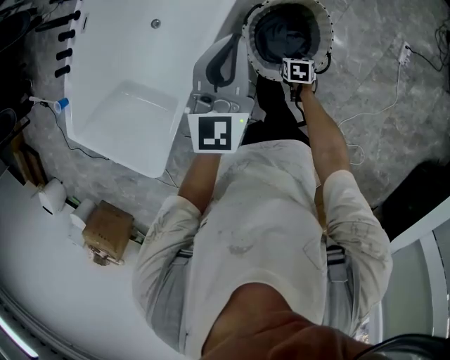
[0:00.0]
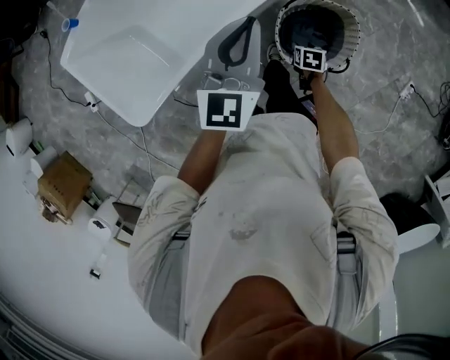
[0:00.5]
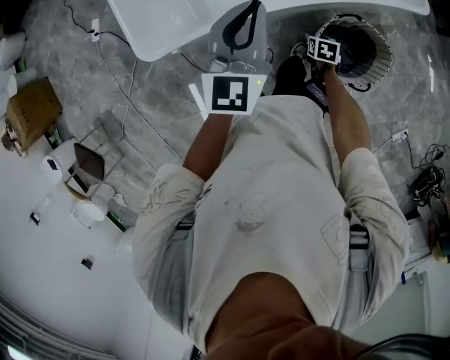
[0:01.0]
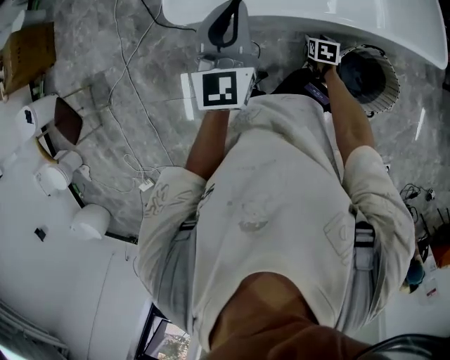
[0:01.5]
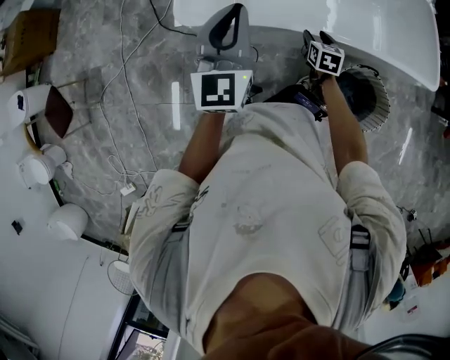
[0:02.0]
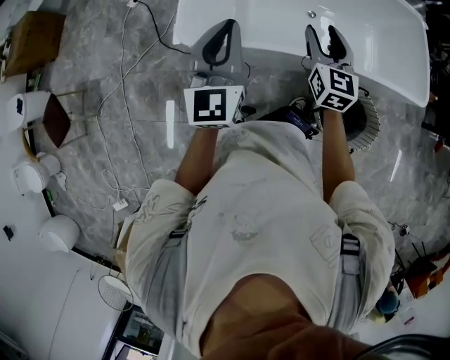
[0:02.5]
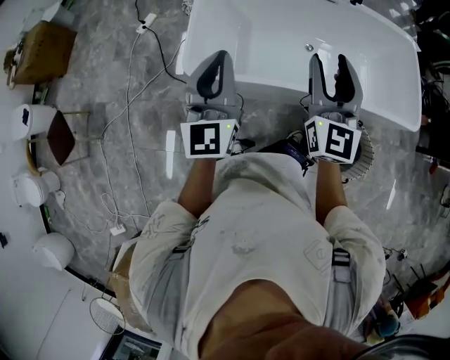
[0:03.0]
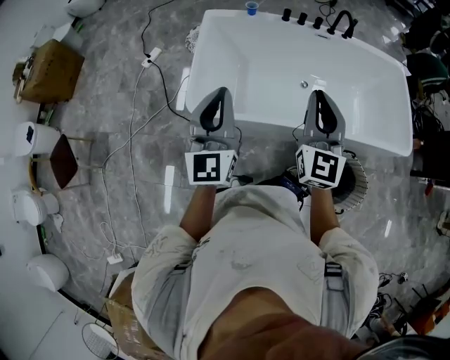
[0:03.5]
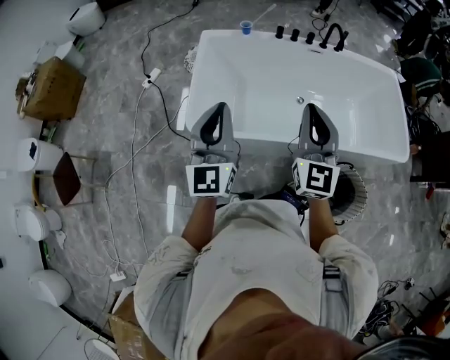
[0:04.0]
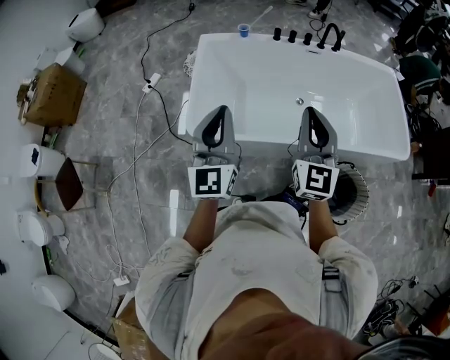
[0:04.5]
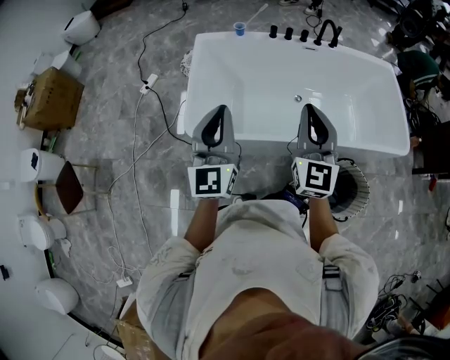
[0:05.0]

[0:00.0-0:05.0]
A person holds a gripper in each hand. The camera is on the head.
0:00.0 to 0:02.5: Both grippers are carried approximately 50 cm. The right gripper angles its fingers upward, by about 60 degrees. The left gripper turns by some 70 degrees.
0:02.5 to 0:05.0: The left gripper shifts approximately 5 cm upward, while the right gripper heads upward, covering approximately 15 cm, and closes.

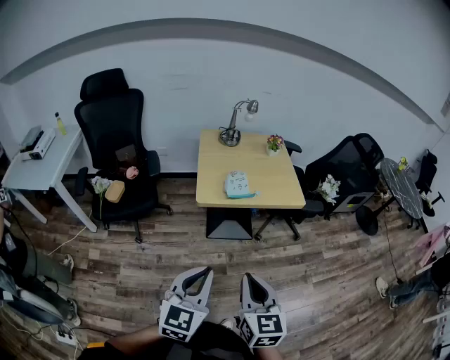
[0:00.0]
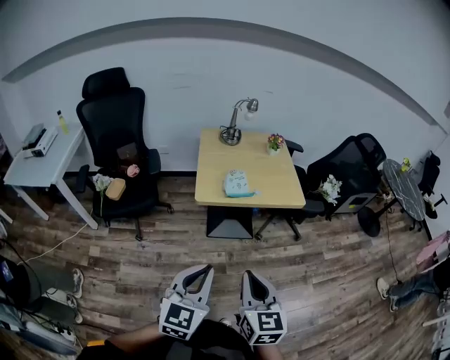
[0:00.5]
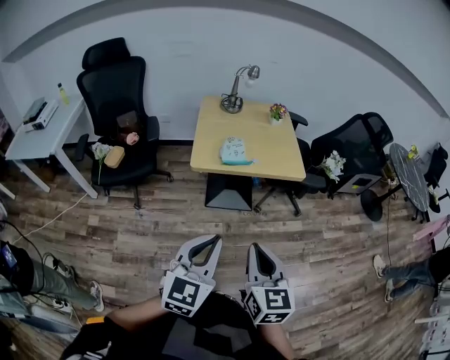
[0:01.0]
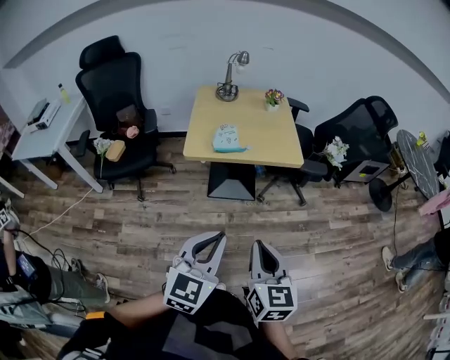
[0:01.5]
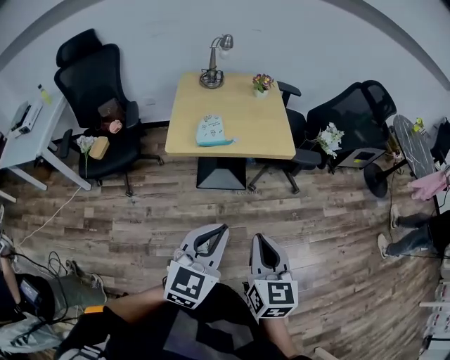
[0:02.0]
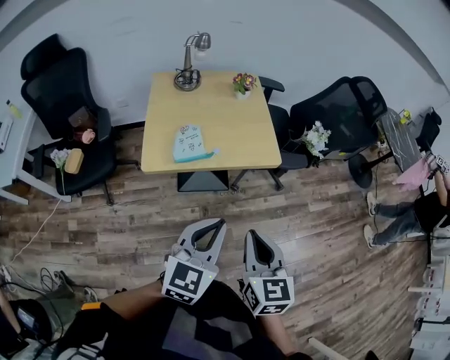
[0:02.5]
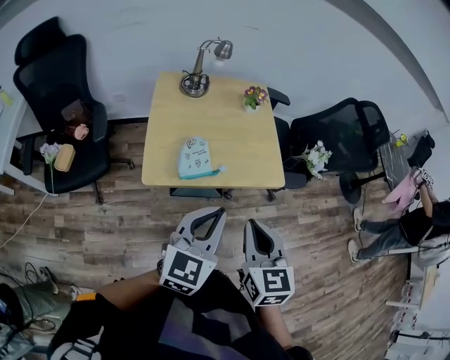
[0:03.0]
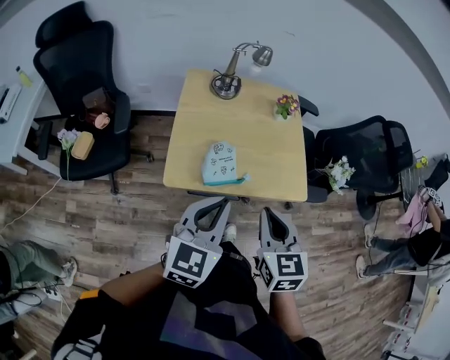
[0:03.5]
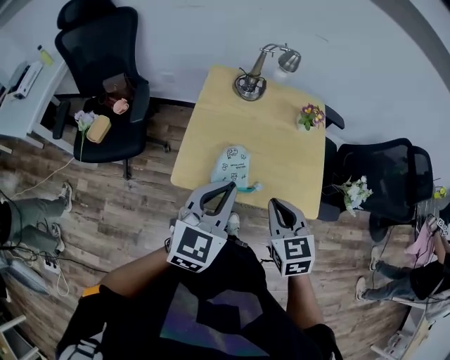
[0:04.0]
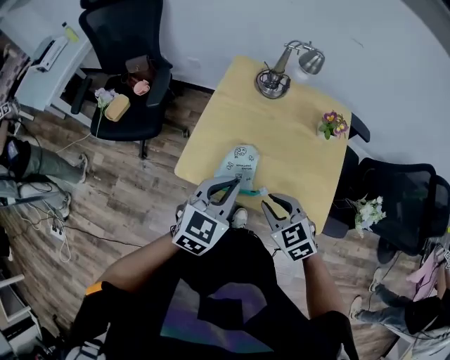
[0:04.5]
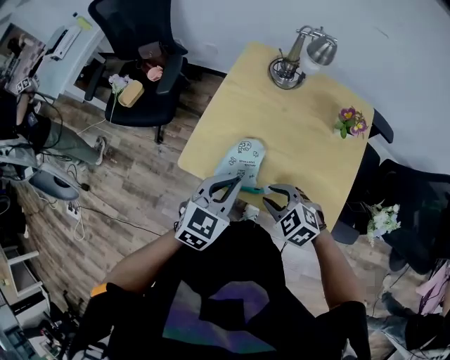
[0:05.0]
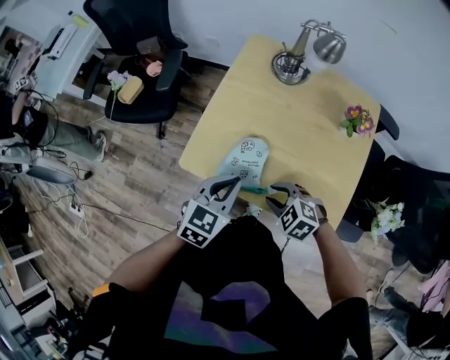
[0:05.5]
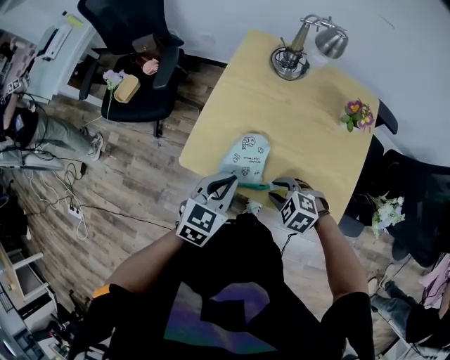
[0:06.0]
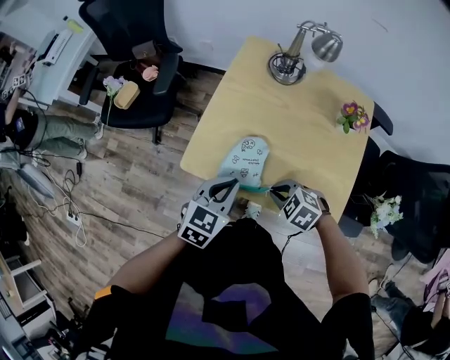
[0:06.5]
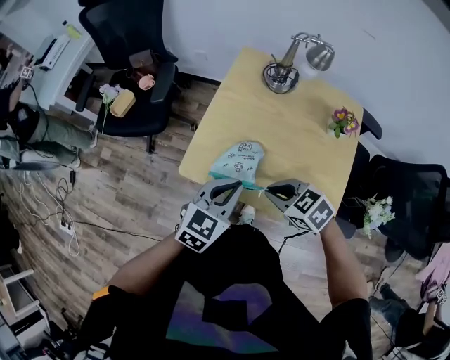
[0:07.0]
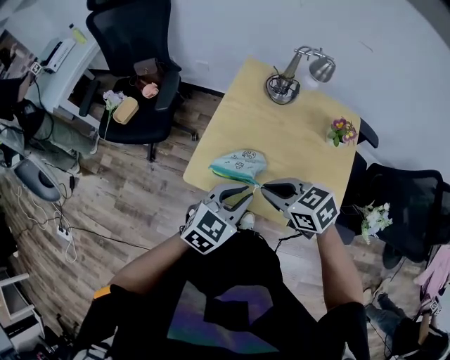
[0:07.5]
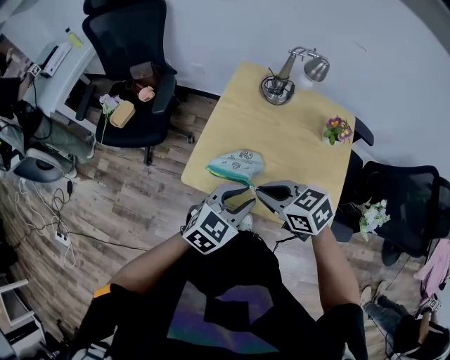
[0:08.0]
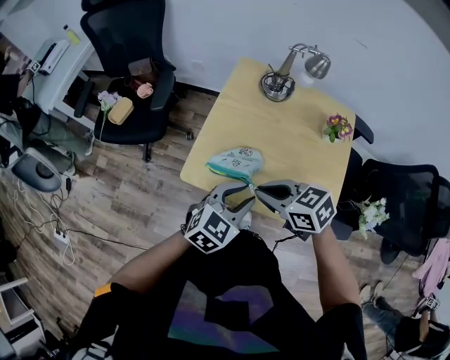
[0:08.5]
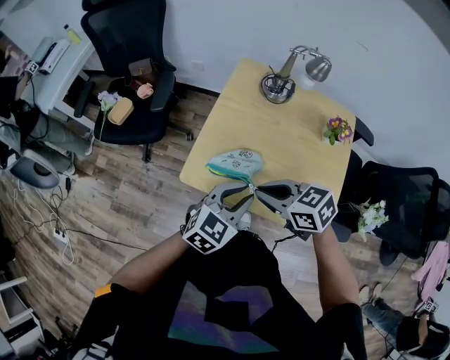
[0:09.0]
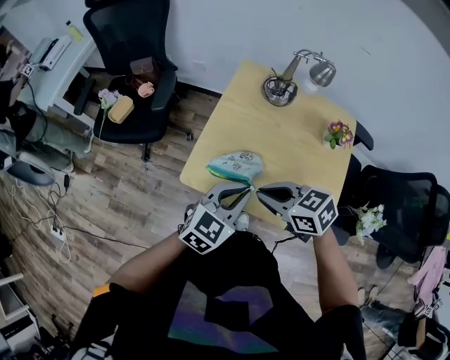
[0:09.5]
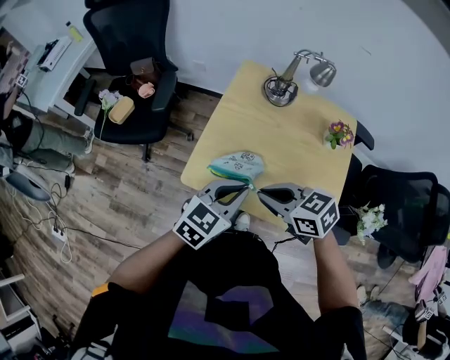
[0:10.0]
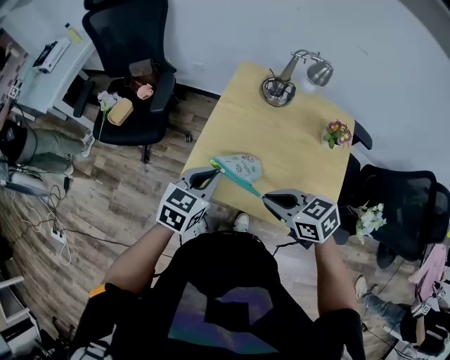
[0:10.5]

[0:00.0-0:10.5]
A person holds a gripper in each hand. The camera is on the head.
0:00.0 to 0:02.0: The two grippers go some 20 cm to the right.
0:02.0 to 0:04.0: Both grippers move forward, approximately 35 cm. The right gripper turns by roughly 30 degrees.
0:04.0 to 0:06.5: The two grippers go about 15 cm downward. The right gripper changes its angle by some 60 degrees, and opens, then closes again, while the left gripper swivels some 20 degrees.
0:06.5 to 0:08.5: The right gripper travels upward by approximately 15 cm, and turns by some 40 degrees, while the left gripper changes place by approximately 5 cm, and opens.
0:08.5 to 0:10.5: The left gripper heads forward and to the left, covering some 10 cm, and closes.

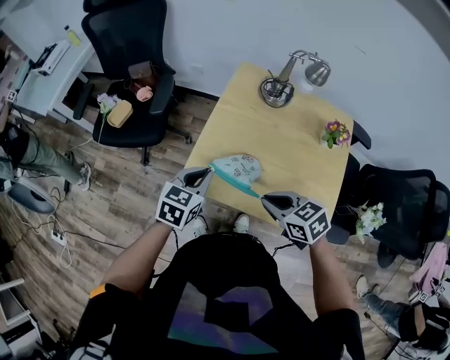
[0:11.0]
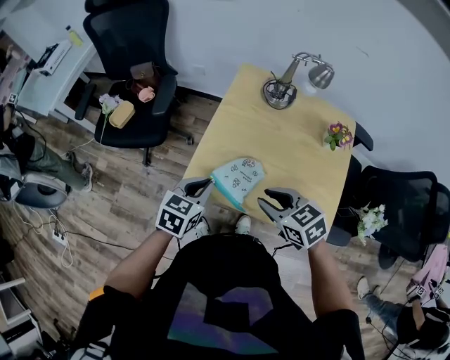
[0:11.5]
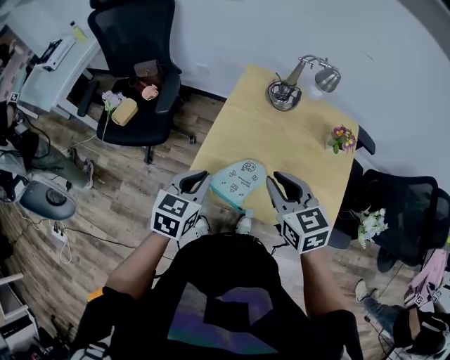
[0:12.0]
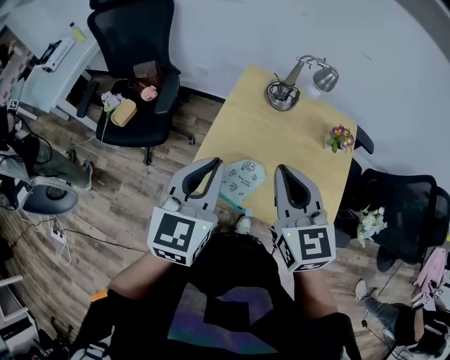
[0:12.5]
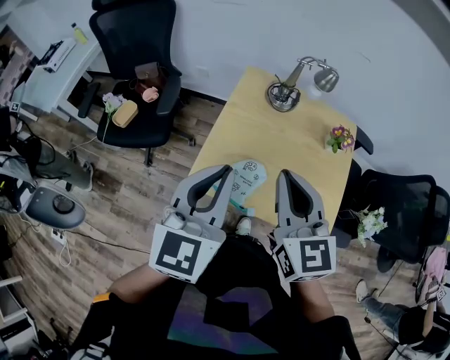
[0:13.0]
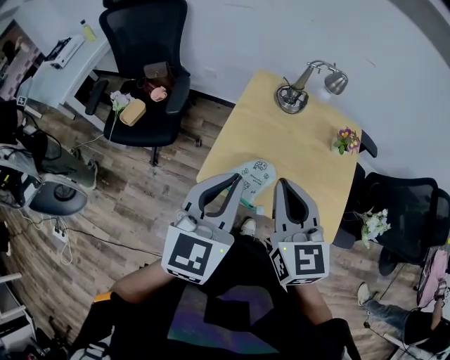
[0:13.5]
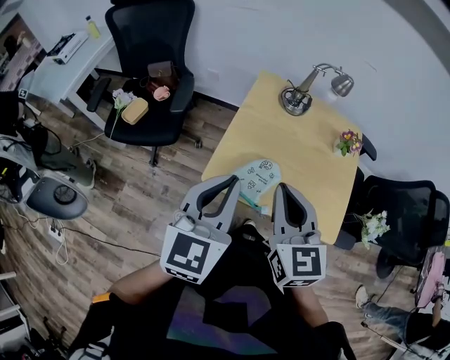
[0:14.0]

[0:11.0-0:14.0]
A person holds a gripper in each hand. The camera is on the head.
0:11.0 to 0:12.5: Both grippers move upward, approximately 20 cm. The left gripper turns by some 20 degrees; the right gripper turns by some 50 degrees, and opens and closes again.
0:12.5 to 0:14.0: Both grippers travel together backward, approximately 5 cm.

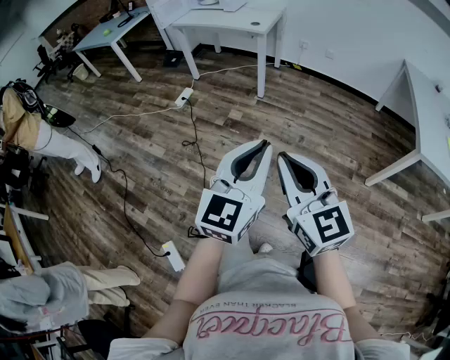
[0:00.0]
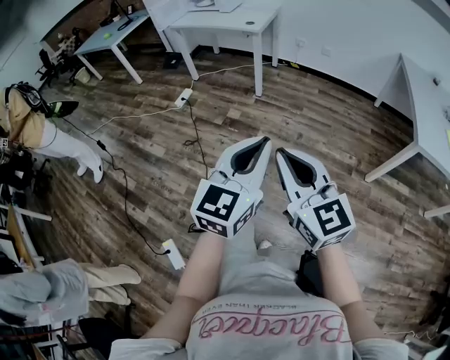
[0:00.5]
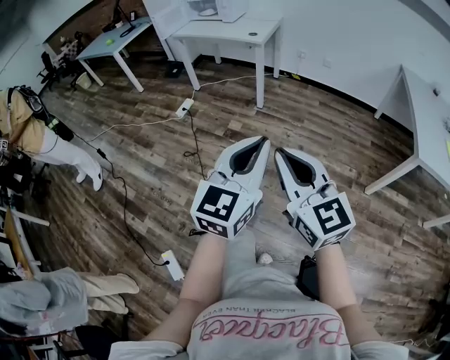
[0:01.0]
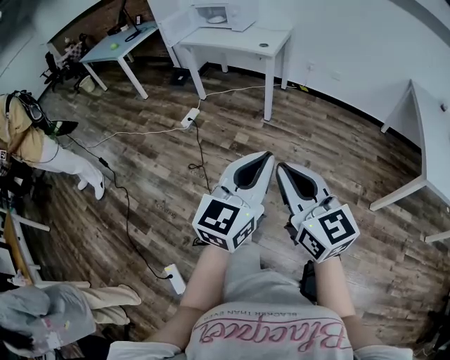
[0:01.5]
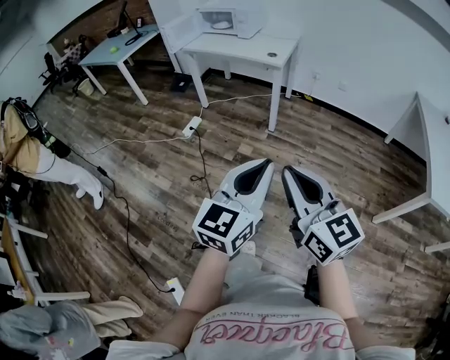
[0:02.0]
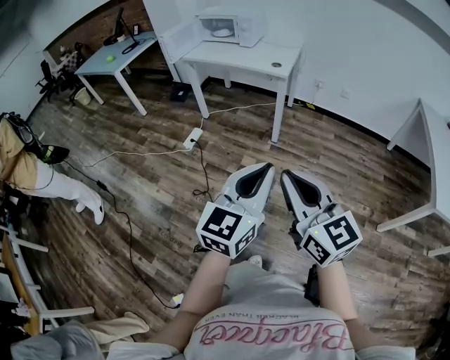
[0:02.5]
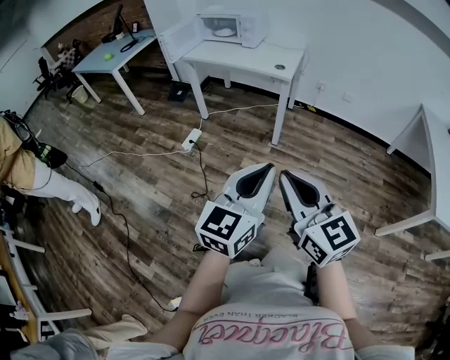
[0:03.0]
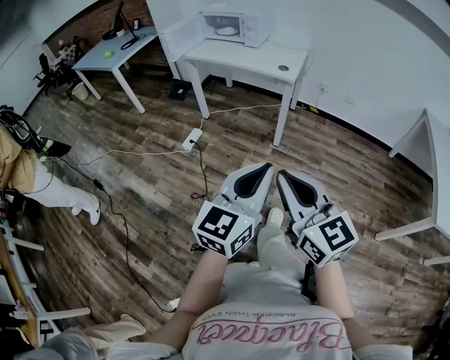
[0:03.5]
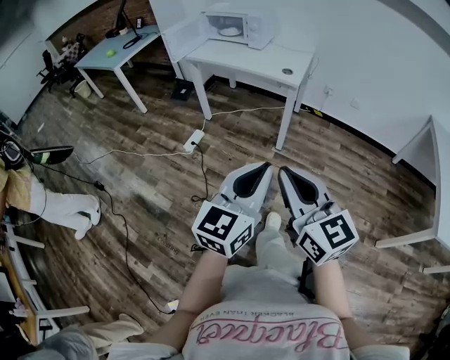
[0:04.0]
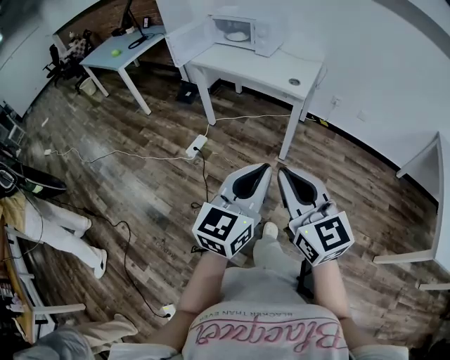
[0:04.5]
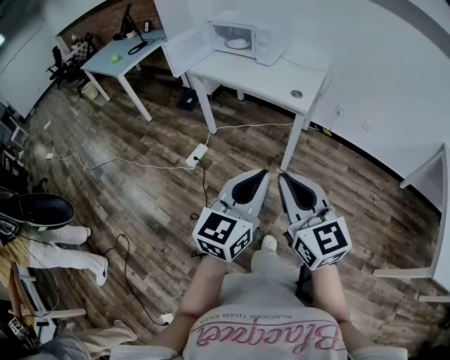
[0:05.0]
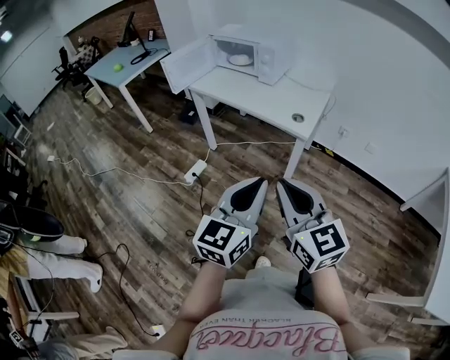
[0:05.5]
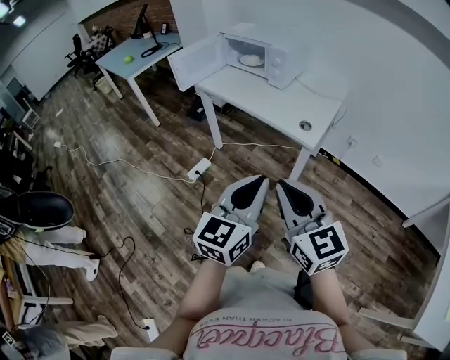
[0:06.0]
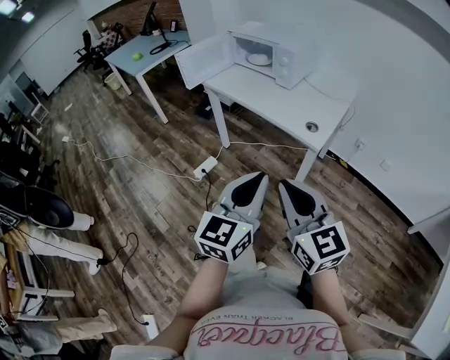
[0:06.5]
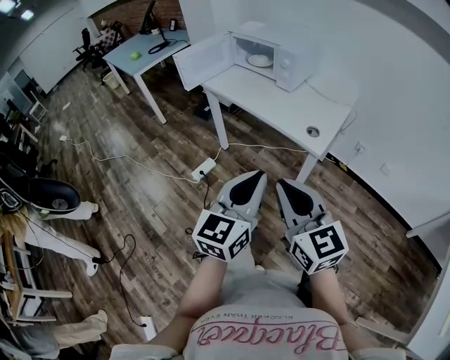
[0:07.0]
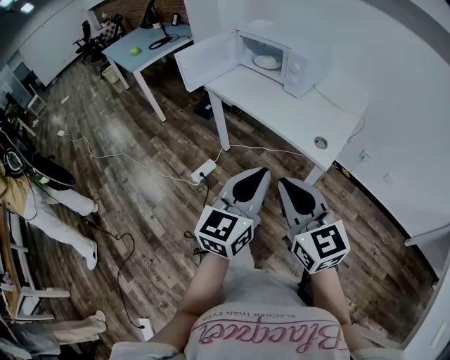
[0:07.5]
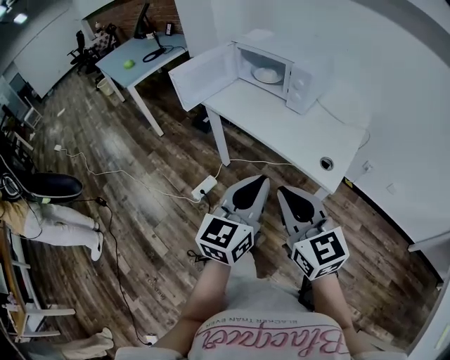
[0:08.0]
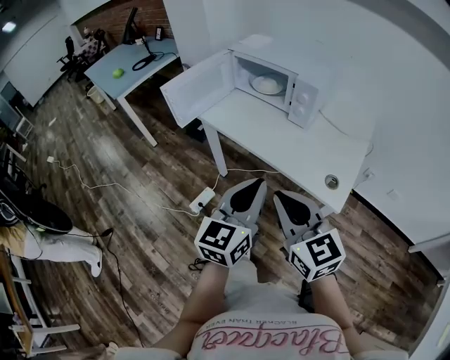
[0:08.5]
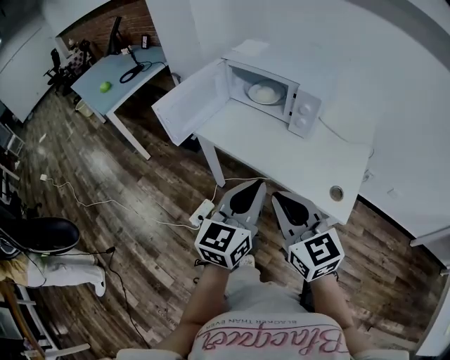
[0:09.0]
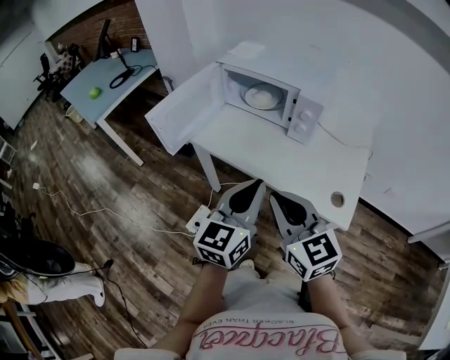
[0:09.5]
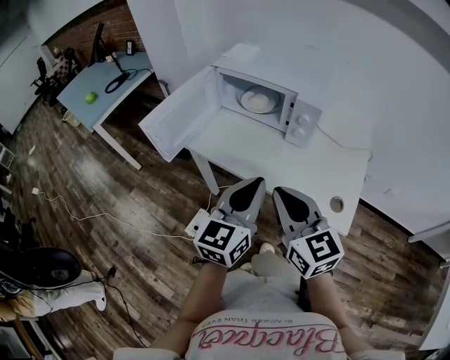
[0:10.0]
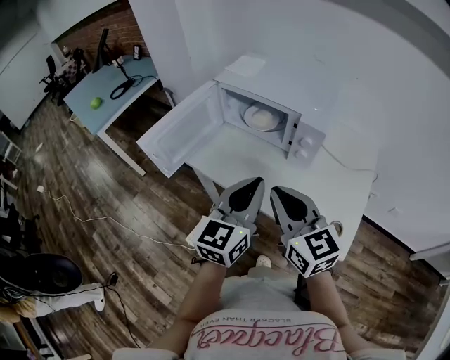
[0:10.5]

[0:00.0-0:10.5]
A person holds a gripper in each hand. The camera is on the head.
0:00.0 to 0:02.0: The right gripper moves forward, some 15 cm. Meanwhile the left gripper shifts approximately 15 cm forward and to the left.
0:02.0 to 0:04.0: The grippers both shift forward by approximately 20 cm.
0:04.0 to 0:06.5: Both grippers move forward, roughly 30 cm.
0:06.5 to 0:08.5: The grippers both shift forward by some 30 cm.
0:08.5 to 0:10.5: Both grippers travel together forward, about 20 cm.
